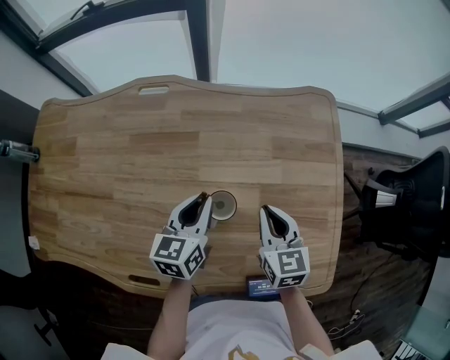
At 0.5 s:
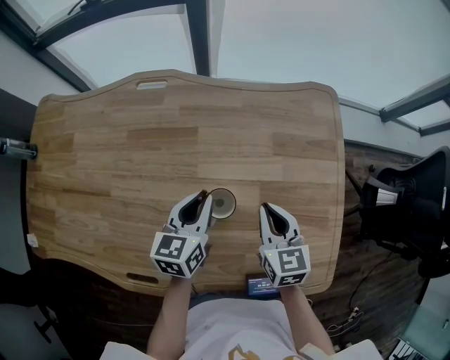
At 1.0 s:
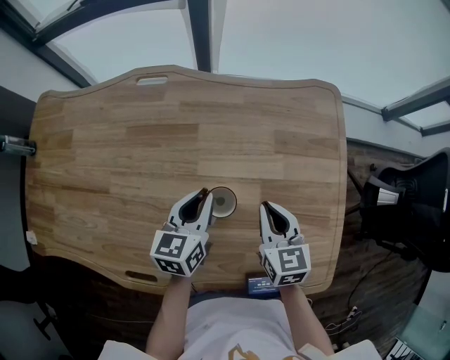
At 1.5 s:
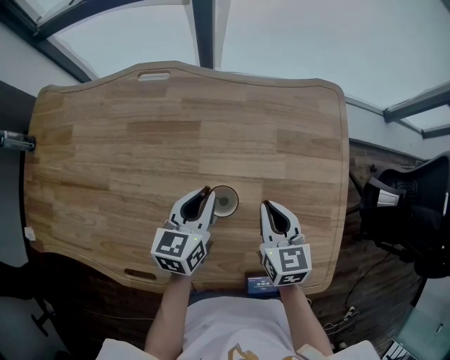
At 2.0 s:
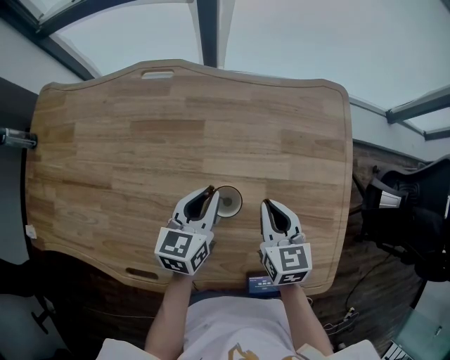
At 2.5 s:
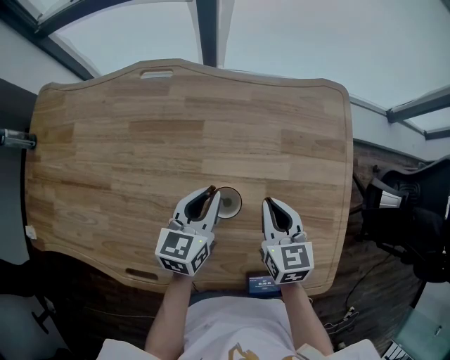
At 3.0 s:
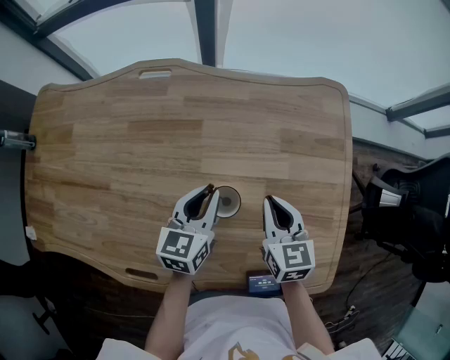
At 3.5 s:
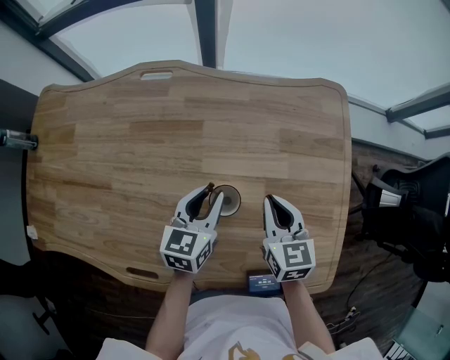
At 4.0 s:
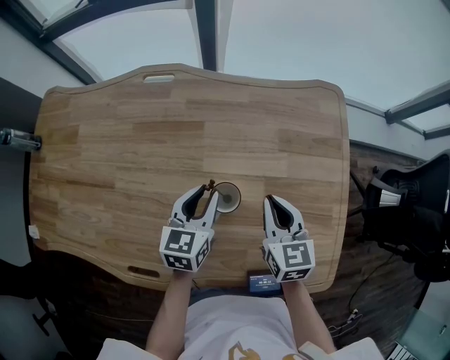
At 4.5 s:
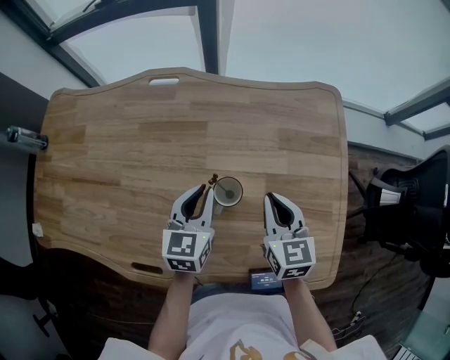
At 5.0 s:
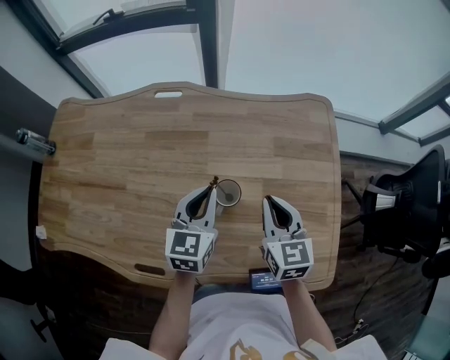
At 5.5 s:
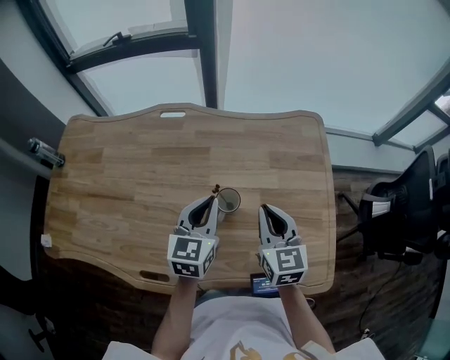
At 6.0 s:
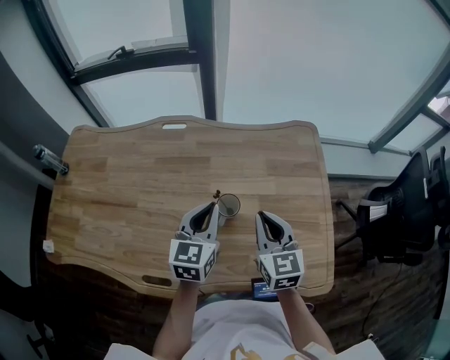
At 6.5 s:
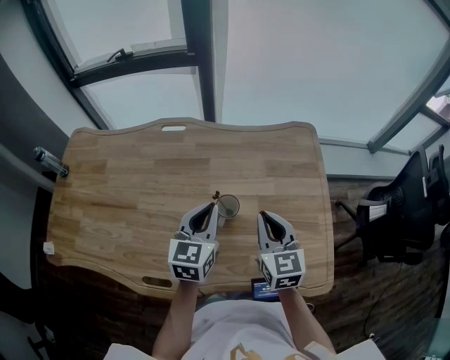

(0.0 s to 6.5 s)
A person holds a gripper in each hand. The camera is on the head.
0.0 s - 4.5 s: The grippers make only small movements.
4.5 s - 6.5 s: Both grippers travel together upward, approximately 10 cm.

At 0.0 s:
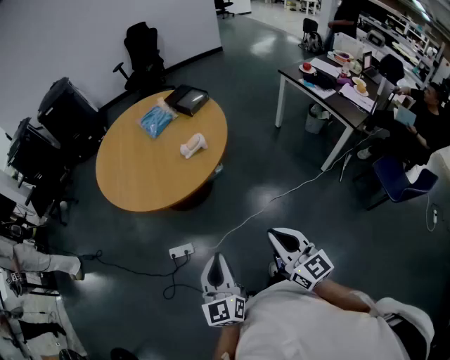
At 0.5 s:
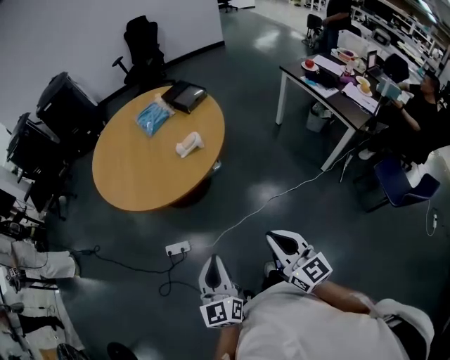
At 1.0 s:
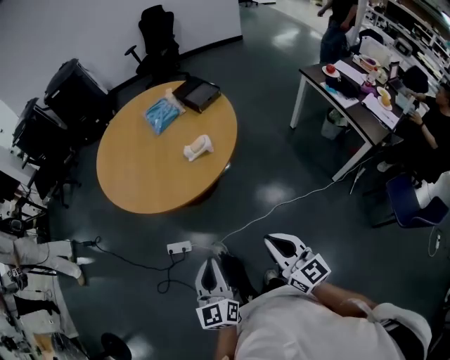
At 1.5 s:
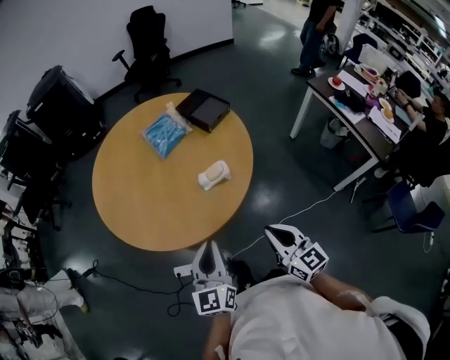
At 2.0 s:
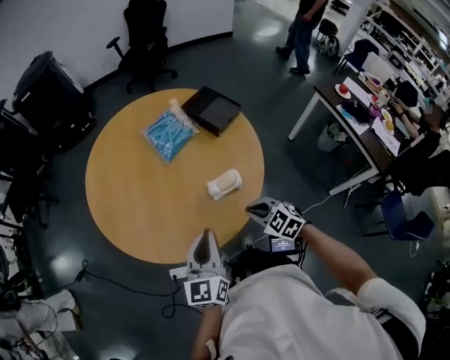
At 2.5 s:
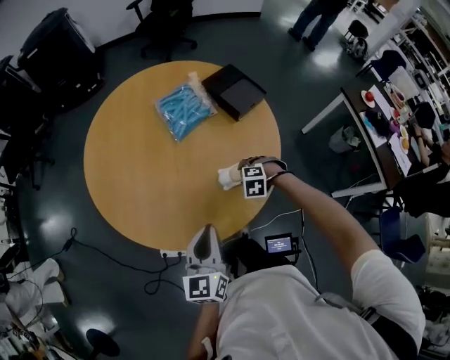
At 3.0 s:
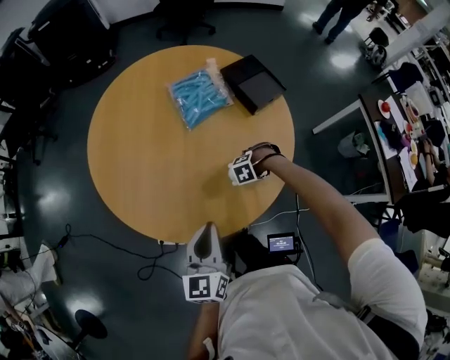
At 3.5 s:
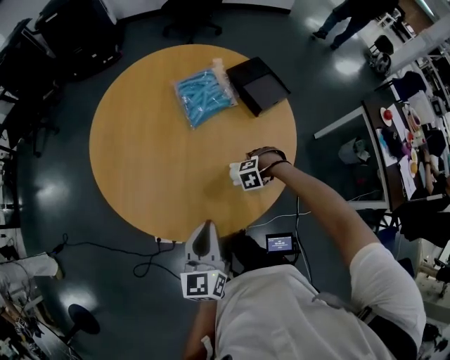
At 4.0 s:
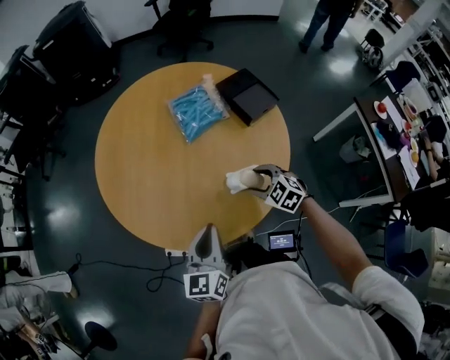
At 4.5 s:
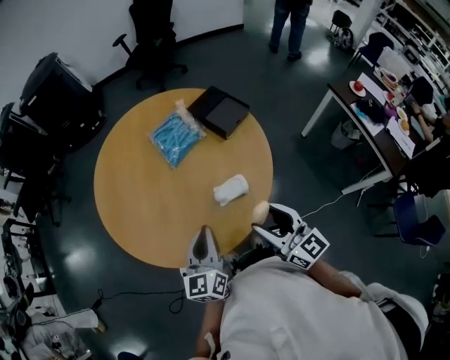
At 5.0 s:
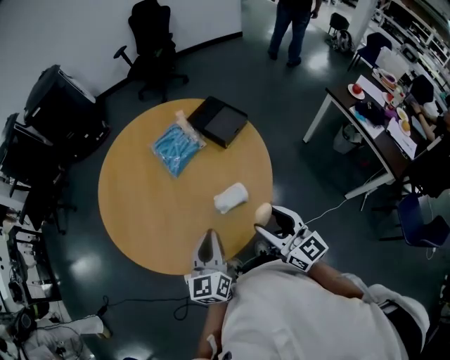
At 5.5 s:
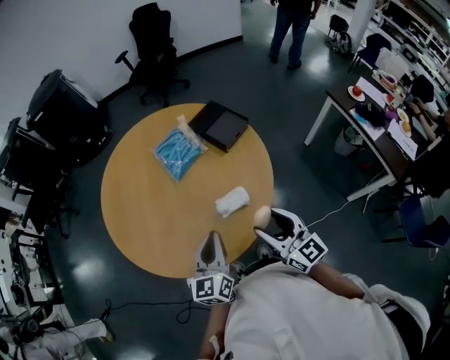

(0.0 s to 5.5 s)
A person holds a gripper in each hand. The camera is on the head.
0.0 s - 2.0 s: The two grippers travel together, forward, roughly 50 cm. The right gripper points its fingers approximately 40 degrees further downward.
2.0 s - 3.5 s: The left gripper moves downward, about 5 cm. The right gripper goes approximately 20 cm downward, tips its fingers downward by about 30 degrees, and opens its fingers.
3.5 s - 5.5 s: The right gripper travels upward by about 35 cm, and points its fingers some 80 degrees further upward. The left gripper moves some 10 cm.

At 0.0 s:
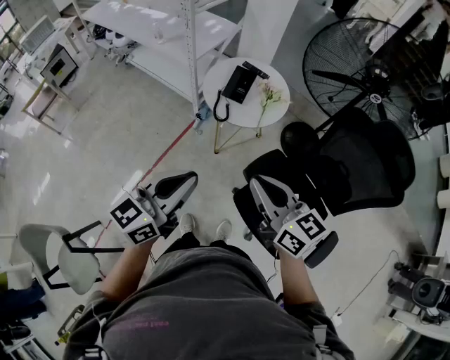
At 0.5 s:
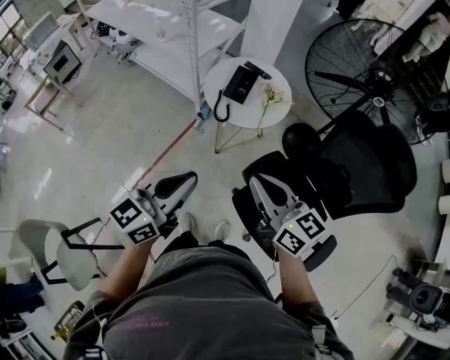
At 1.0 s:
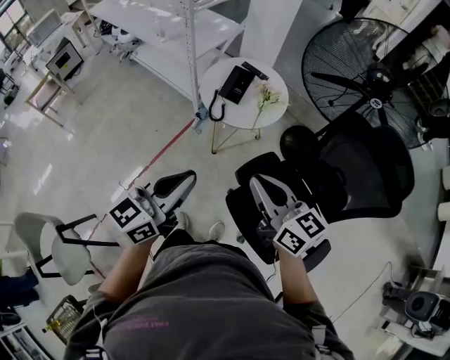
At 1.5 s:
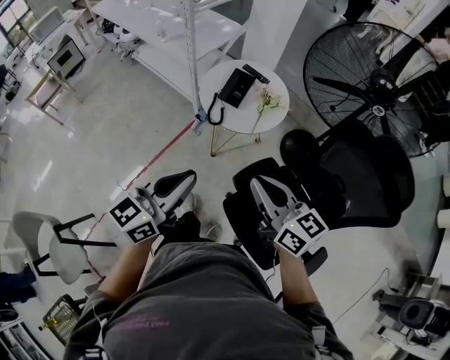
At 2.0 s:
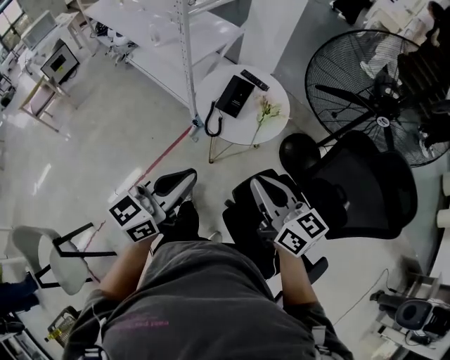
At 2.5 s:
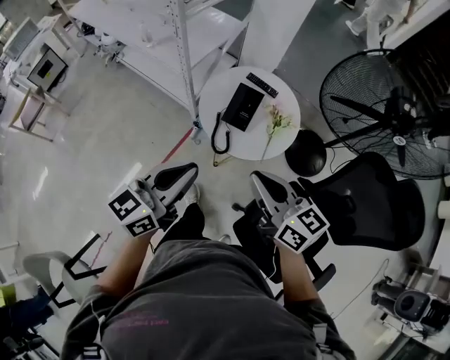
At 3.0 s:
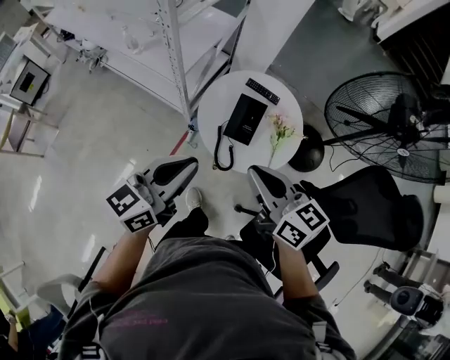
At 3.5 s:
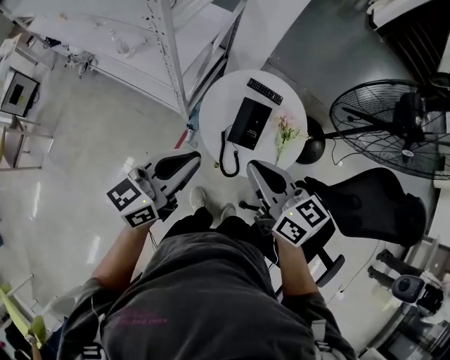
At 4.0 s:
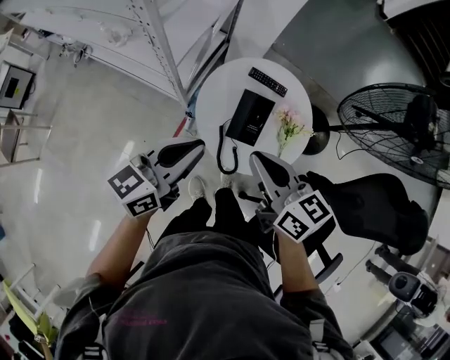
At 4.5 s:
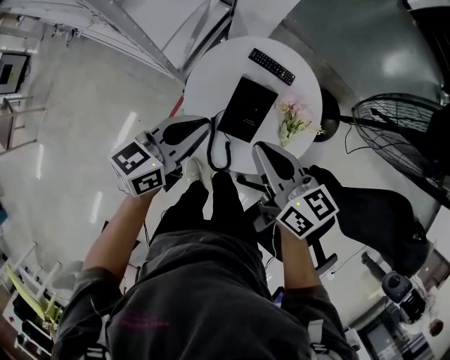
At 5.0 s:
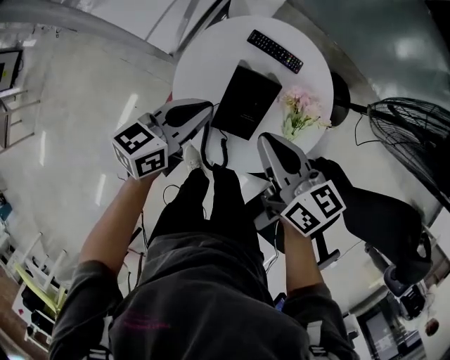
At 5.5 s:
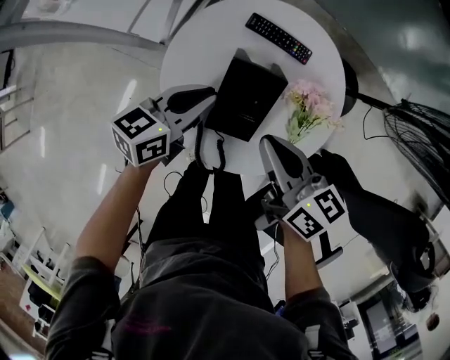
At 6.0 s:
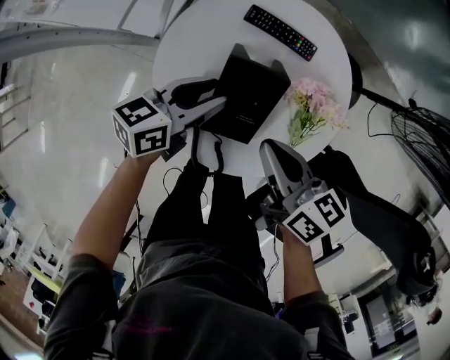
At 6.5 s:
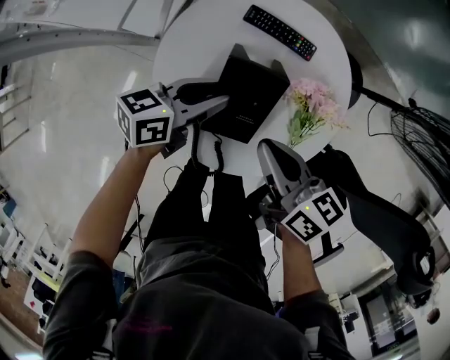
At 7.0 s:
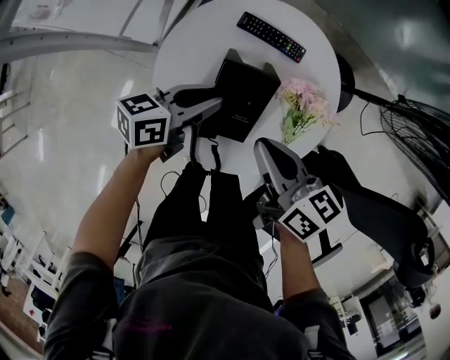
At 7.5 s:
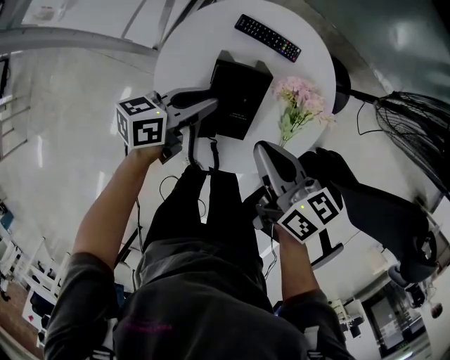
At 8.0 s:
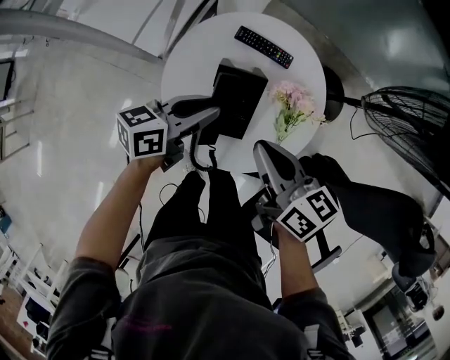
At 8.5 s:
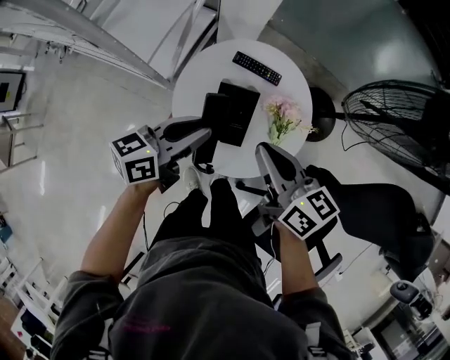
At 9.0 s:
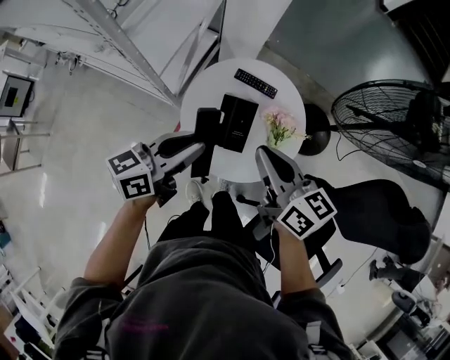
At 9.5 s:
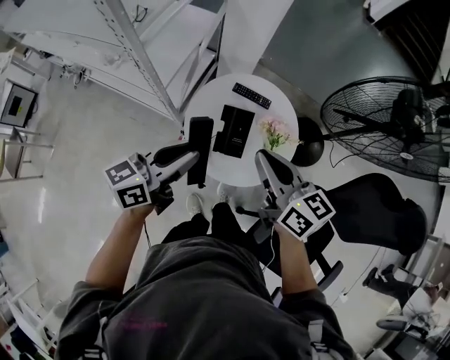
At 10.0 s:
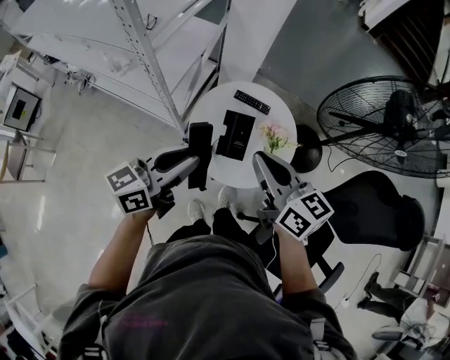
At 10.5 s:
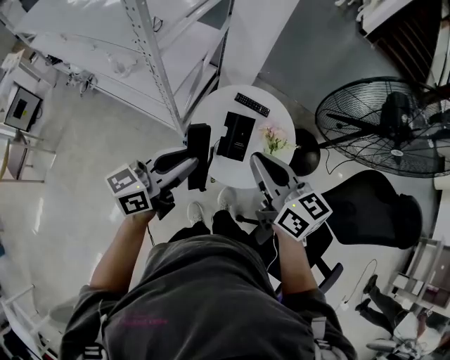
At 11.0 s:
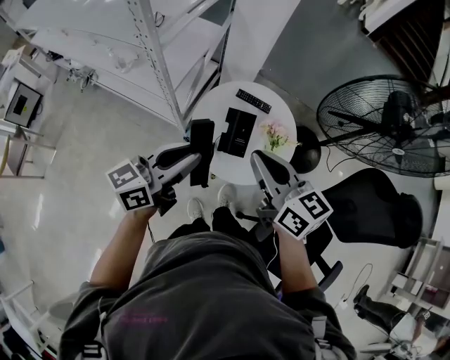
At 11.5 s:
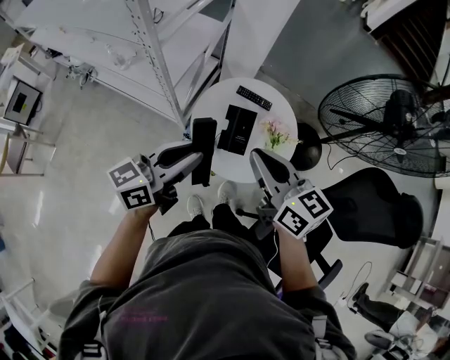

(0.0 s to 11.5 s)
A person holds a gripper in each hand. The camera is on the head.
0.0 s - 2.0 s: The left gripper heads forward, covering roughly 10 cm, while the right gripper heads forward and to the right, covering about 10 cm.
2.0 s - 4.0 s: The left gripper goes approximately 40 cm forward, and swivels some 20 degrees, while the right gripper travels forward and to the left by some 35 cm.
4.0 s - 6.0 s: The right gripper is displaced downward by roughly 25 cm, and rotates about 20 degrees. Meanwhile the left gripper is displaced downward and forward by approximately 35 cm, changes its angle by some 20 degrees, and opens up.
6.0 s - 7.5 s: There are only small adjustments of the grippers.
7.5 s - 9.5 s: The left gripper is displaced upward and backward by some 35 cm, and rotates about 20 degrees, while the right gripper is displaced upward by roughly 25 cm, and turns by roughly 20 degrees.
9.5 s - 11.5 s: The right gripper shifts by roughly 5 cm, while the left gripper ends up approximately 5 cm from where it was.

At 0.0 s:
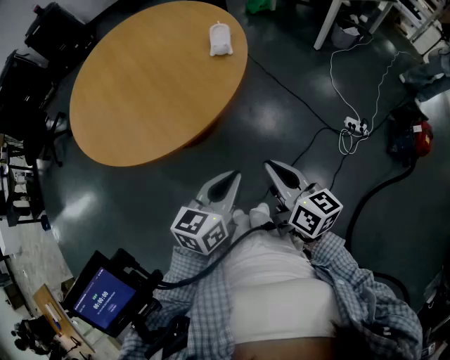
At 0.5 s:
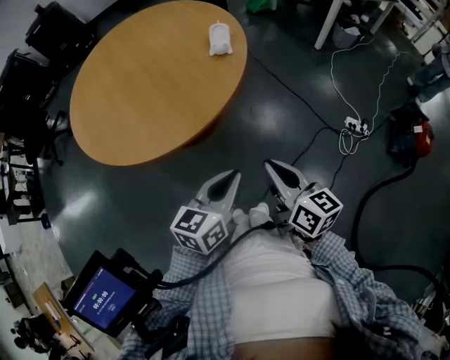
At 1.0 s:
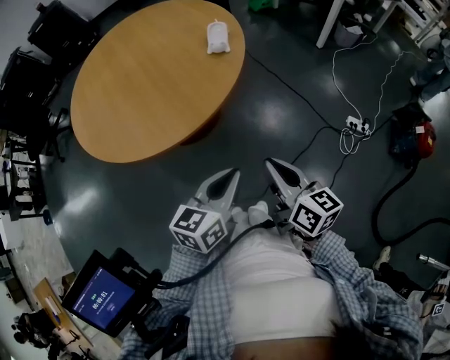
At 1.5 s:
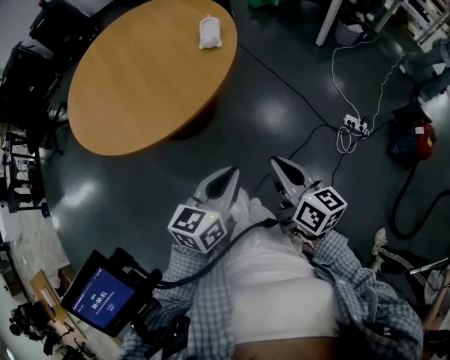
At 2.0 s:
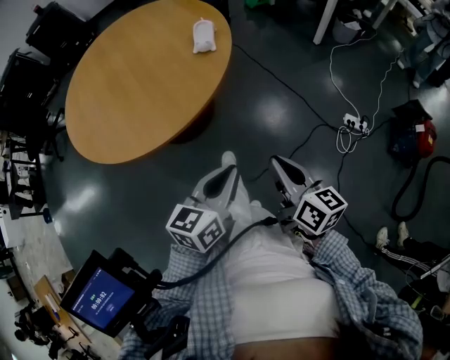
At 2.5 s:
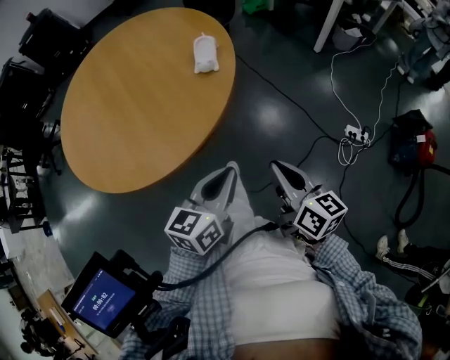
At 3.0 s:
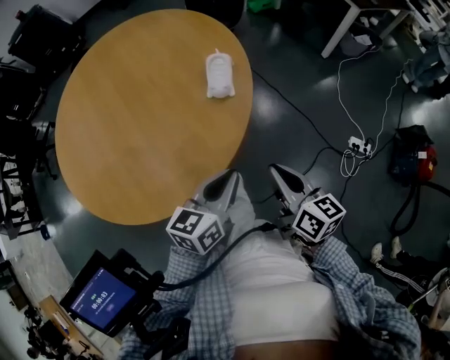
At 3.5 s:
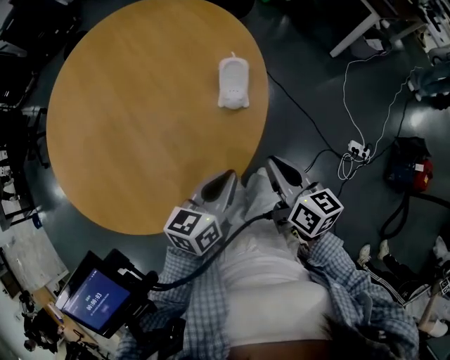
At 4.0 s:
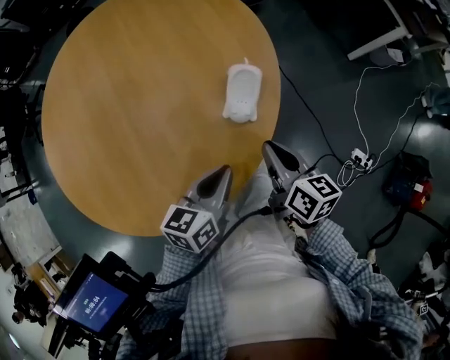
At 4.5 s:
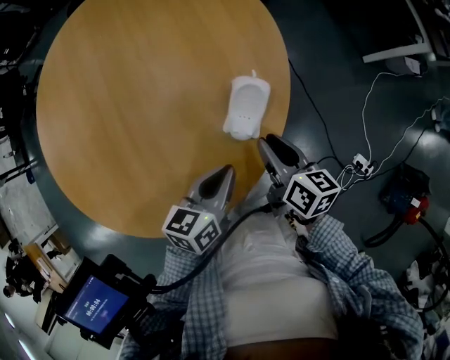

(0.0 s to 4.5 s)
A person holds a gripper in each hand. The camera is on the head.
0.0 s - 2.0 s: The grippers both shift to the right by some 5 cm.
2.0 s - 4.5 s: Both grippers move forward, about 35 cm. The left gripper turns by approximately 20 degrees. The right gripper turns by about 20 degrees, and opens its fingers.
